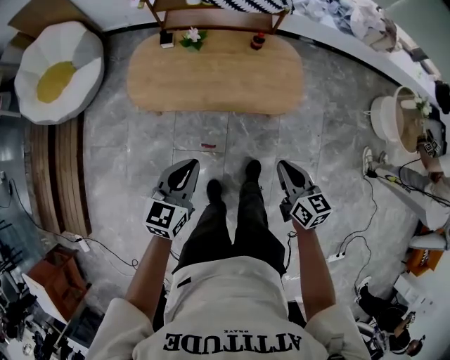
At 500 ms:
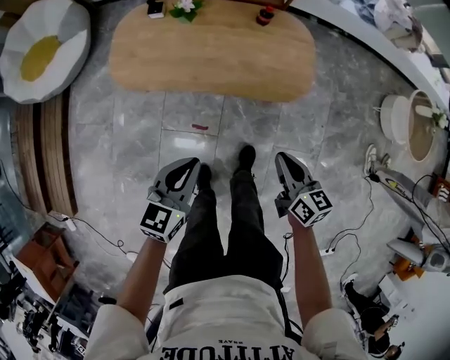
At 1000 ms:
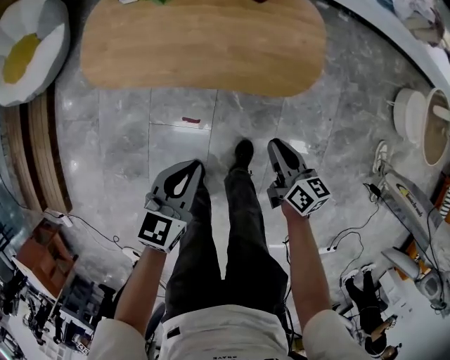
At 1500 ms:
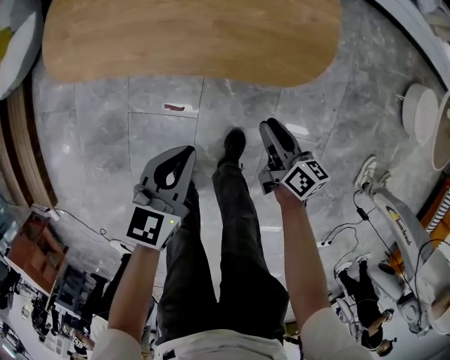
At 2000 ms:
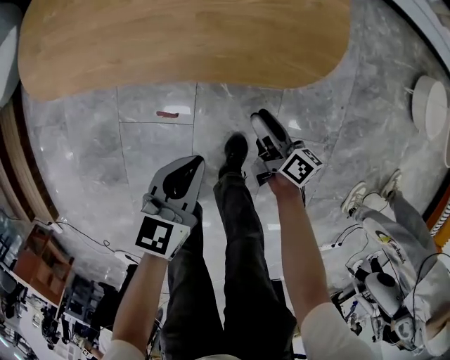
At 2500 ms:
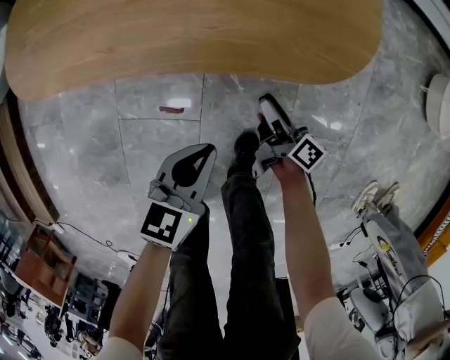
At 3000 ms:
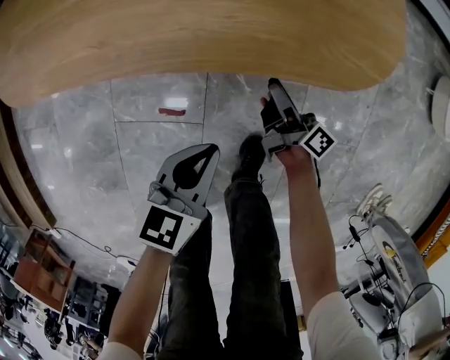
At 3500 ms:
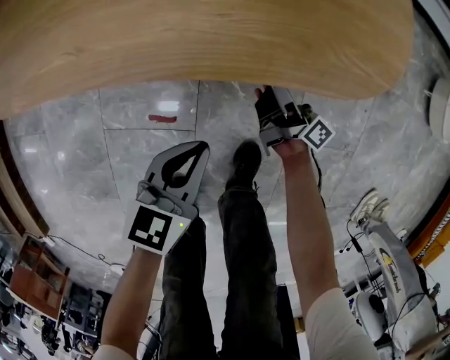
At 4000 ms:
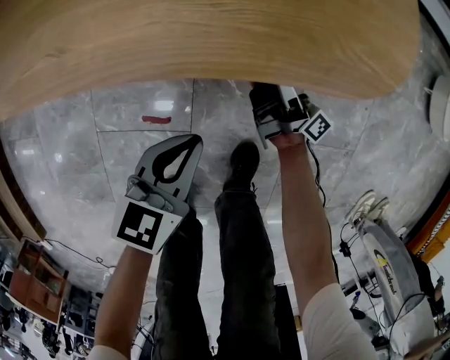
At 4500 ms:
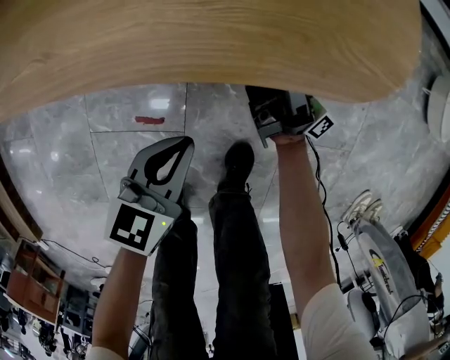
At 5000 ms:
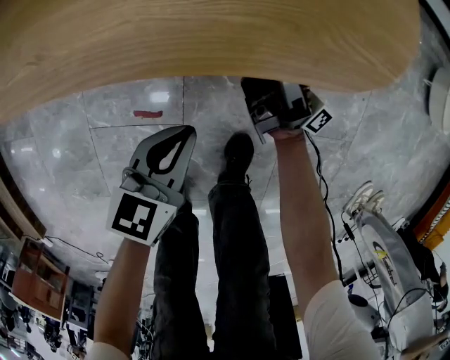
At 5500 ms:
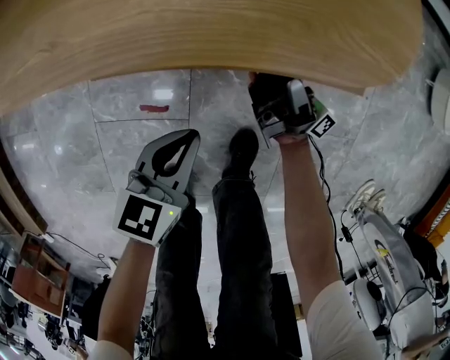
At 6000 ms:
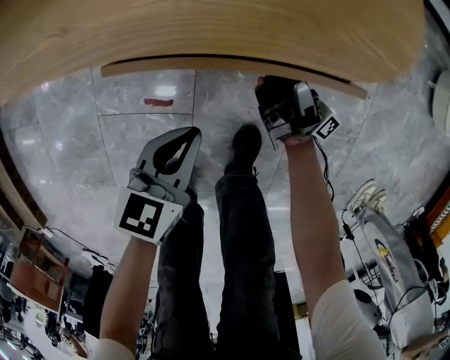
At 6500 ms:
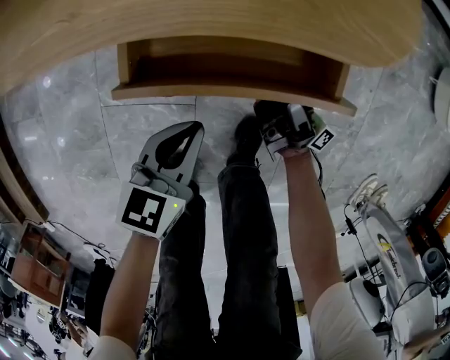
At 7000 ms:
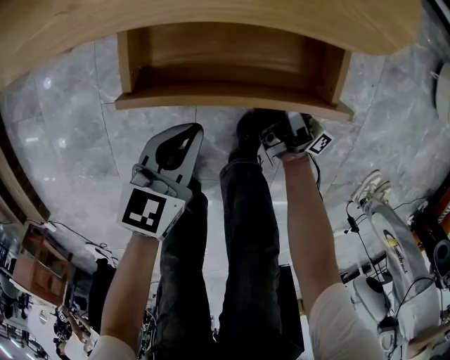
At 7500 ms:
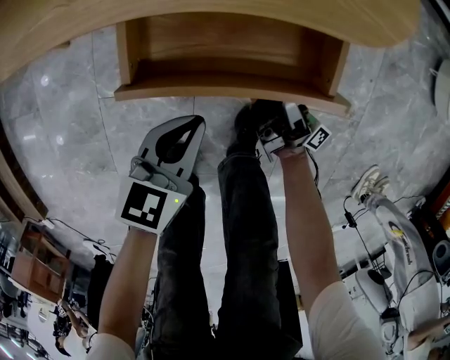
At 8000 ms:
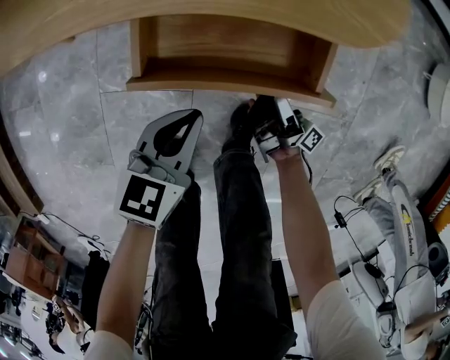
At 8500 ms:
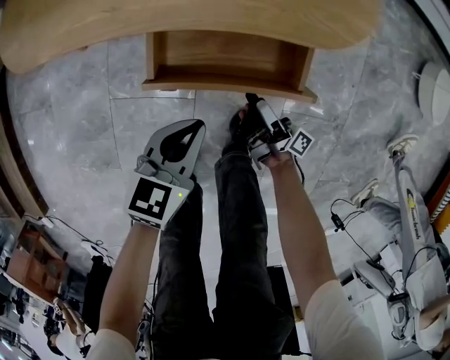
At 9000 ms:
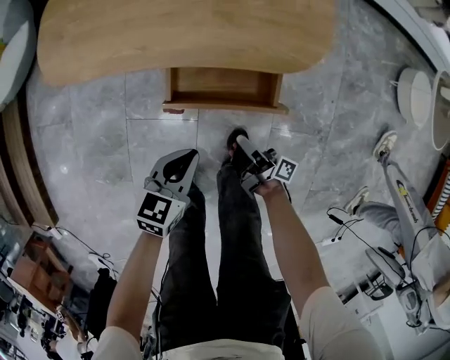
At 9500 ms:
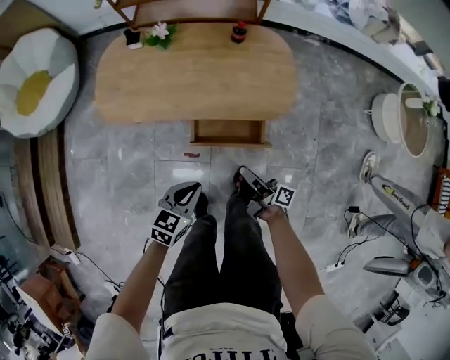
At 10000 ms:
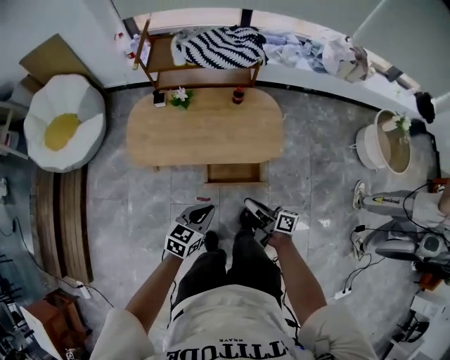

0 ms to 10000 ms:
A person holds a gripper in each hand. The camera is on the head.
0 ms to 2000 ms: The right gripper moves downward, about 50 cm, swivels approximately 40 degrees, and opens its fingers. The left gripper moves downward and to the right, about 40 cm.
2000 ms to 4000 ms: The right gripper is displaced downward and forward by approximately 15 cm, tips its fingers upward by approximately 40 degrees, and opens; the left gripper shifts about 20 cm downward.
4000 ms to 6000 ms: The right gripper moves upward, about 5 cm.
6000 ms to 8000 ms: The left gripper shifts by some 5 cm, while the right gripper heads backward, covering about 10 cm.
8000 ms to 10000 ms: The two grippers go approximately 50 cm upward. The right gripper turns by roughly 30 degrees, and closes.

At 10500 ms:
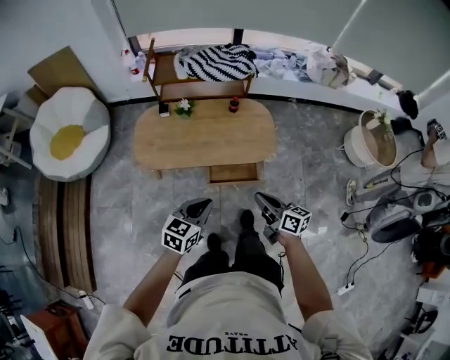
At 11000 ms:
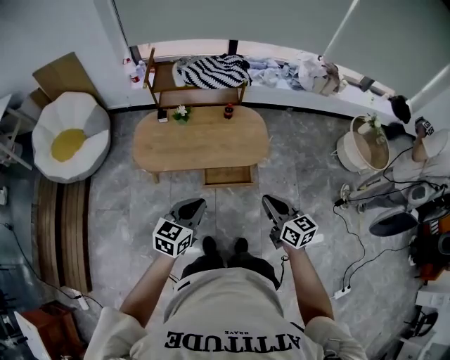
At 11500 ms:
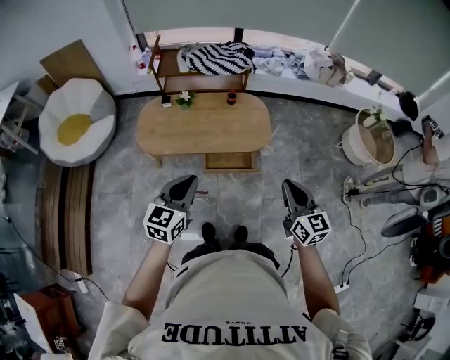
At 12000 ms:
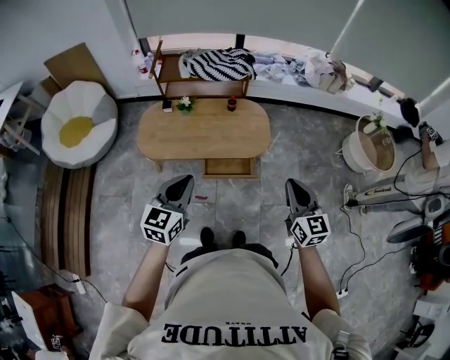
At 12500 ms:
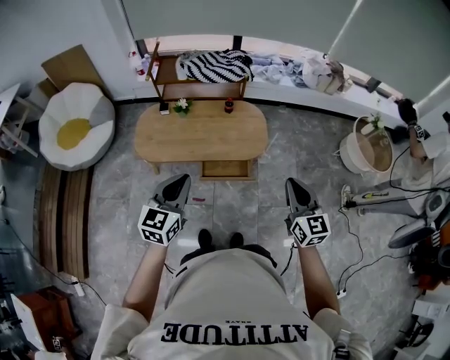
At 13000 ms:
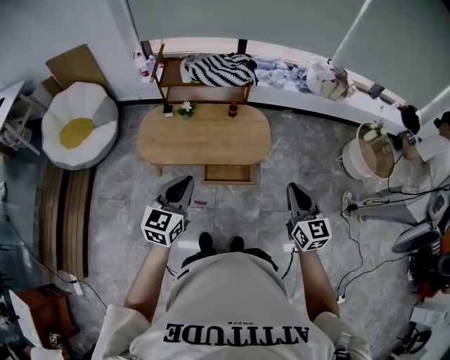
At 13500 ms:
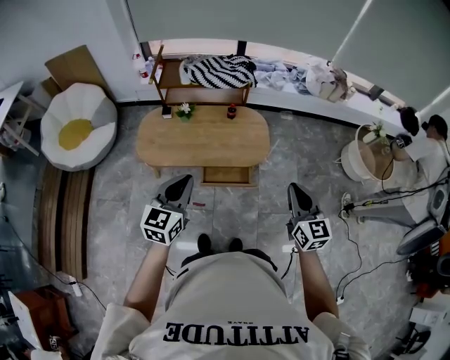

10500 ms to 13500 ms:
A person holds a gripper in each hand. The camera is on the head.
10500 ms to 12000 ms: The left gripper goes roughly 15 cm upward, and turns by roughly 20 degrees, while the right gripper moves upward and to the right, approximately 20 cm, and rotates roughly 40 degrees.
12000 ms to 13500 ms: The grippers make only small movements.

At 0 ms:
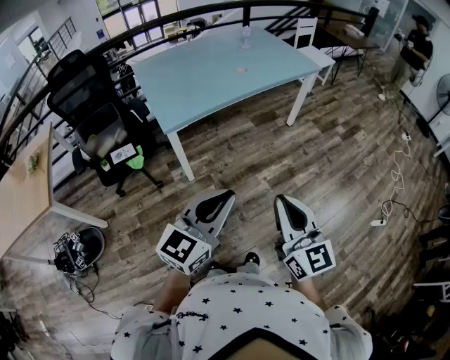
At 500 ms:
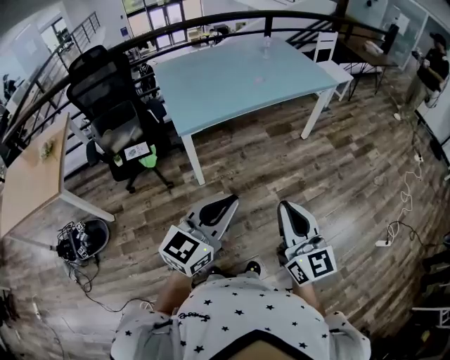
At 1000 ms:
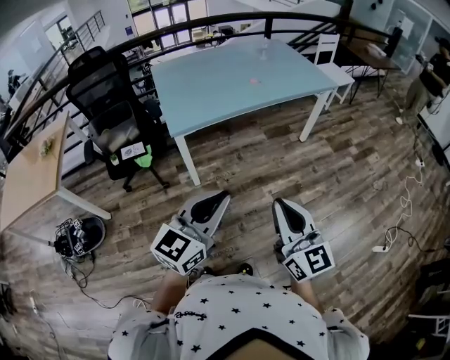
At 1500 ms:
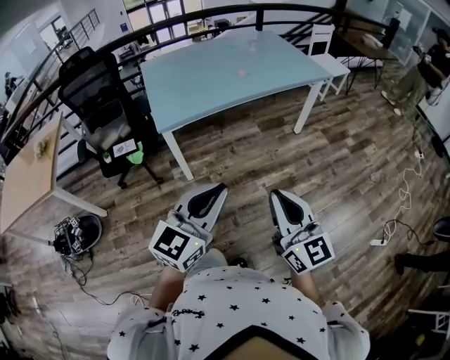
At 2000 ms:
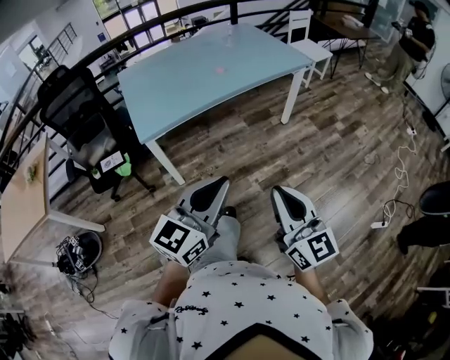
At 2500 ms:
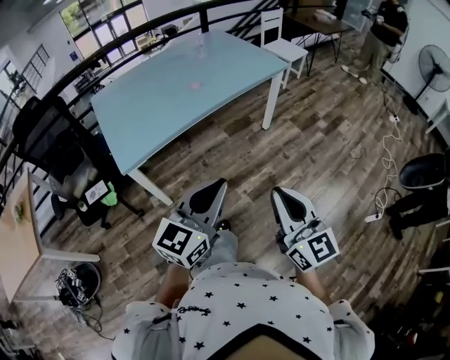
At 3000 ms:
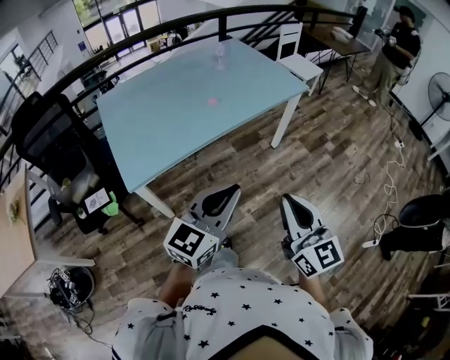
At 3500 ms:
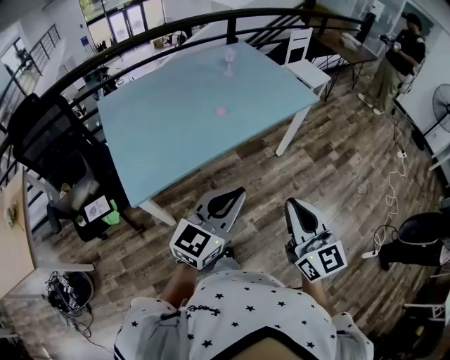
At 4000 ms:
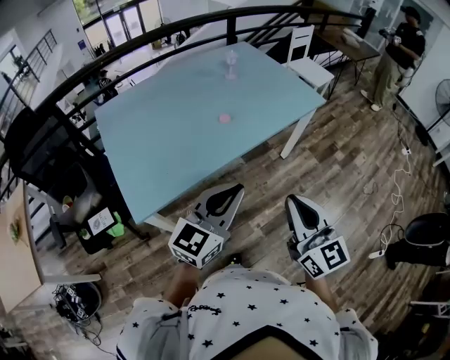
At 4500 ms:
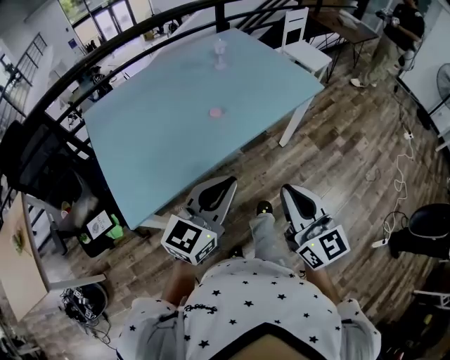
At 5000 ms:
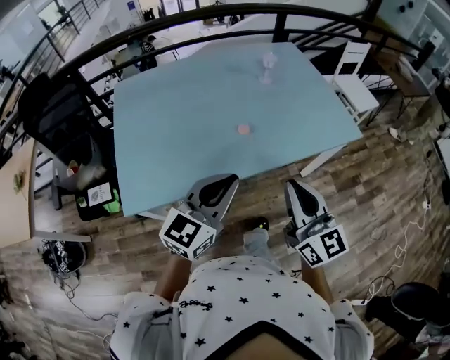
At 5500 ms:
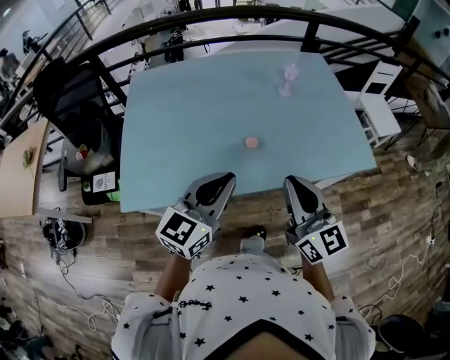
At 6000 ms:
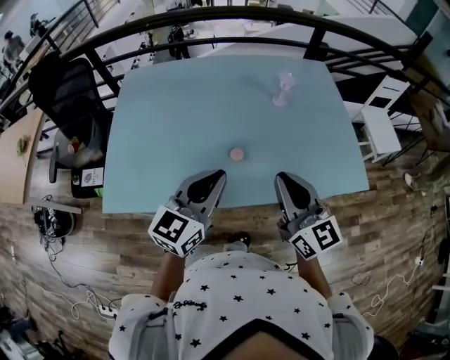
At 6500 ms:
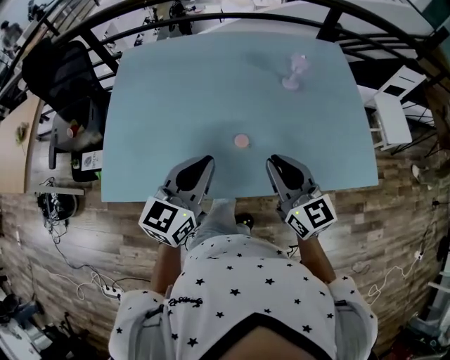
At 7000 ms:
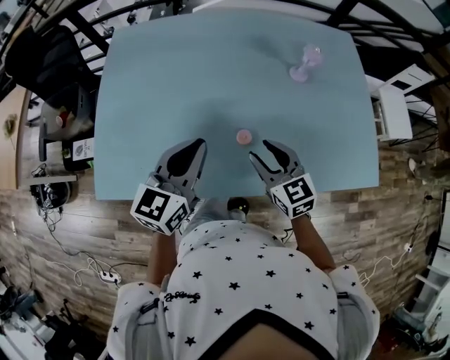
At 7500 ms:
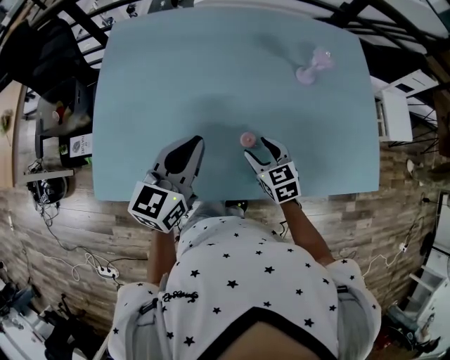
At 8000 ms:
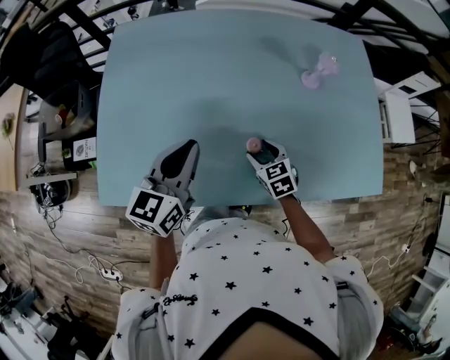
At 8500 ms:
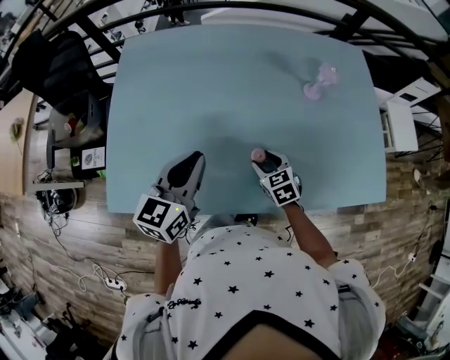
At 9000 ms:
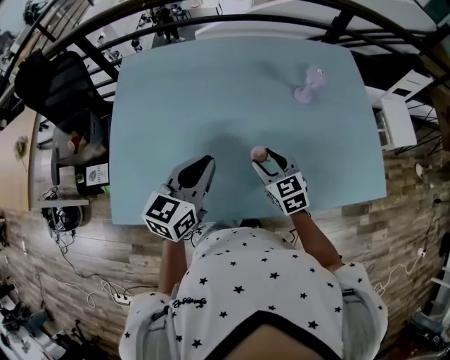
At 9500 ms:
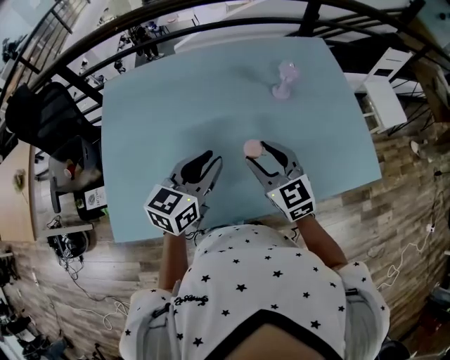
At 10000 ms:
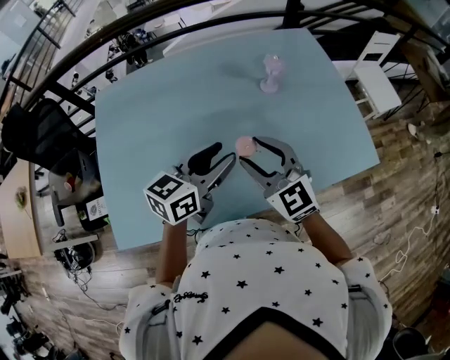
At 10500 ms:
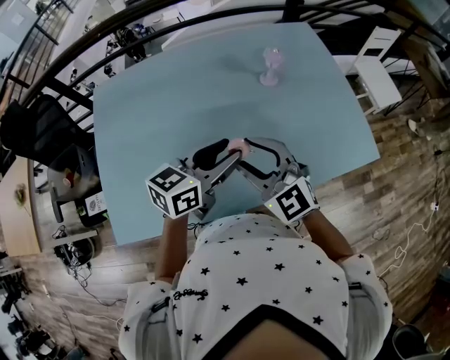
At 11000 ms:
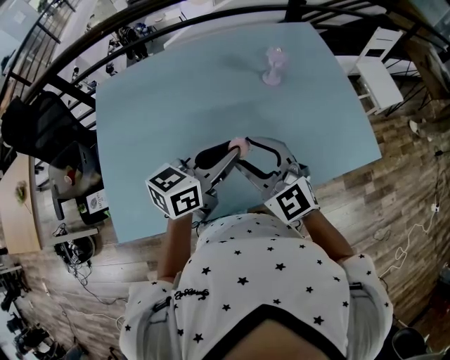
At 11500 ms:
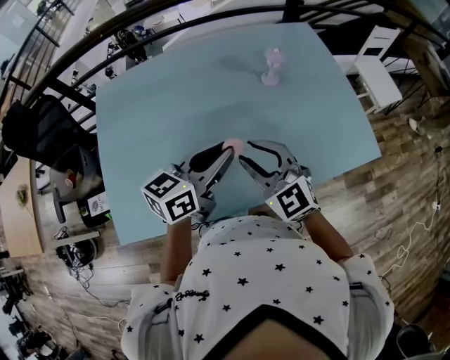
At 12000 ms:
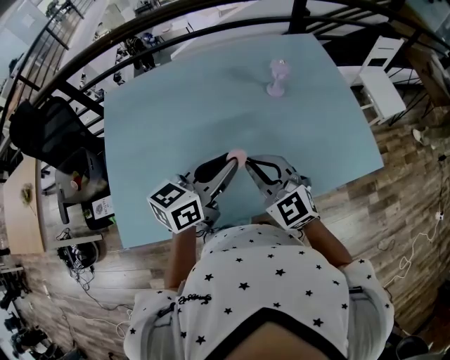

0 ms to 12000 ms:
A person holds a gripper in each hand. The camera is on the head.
0 ms to 2000 ms: Both grippers travel together to the right and forward, roughly 15 cm.
2000 ms to 4000 ms: Both grippers travel together forward, some 30 cm.
4000 ms to 6000 ms: The left gripper changes place by approximately 30 cm, and changes its angle by roughly 30 degrees. The right gripper changes place by some 35 cm, and swivels roughly 30 degrees.
6000 ms to 8000 ms: The left gripper heads forward, to the left and downward, covering approximately 20 cm. The right gripper travels downward and forward by some 35 cm, tips its fingers downward by roughly 50 degrees, and opens its fingers.
8000 ms to 10000 ms: The left gripper heads to the right, covering approximately 15 cm, swivels some 30 degrees, and opens its fingers, while the right gripper shifts some 25 cm upward, and tilts its fingers some 30 degrees upward.
10000 ms to 12000 ms: The right gripper closes up. Meanwhile the left gripper closes.

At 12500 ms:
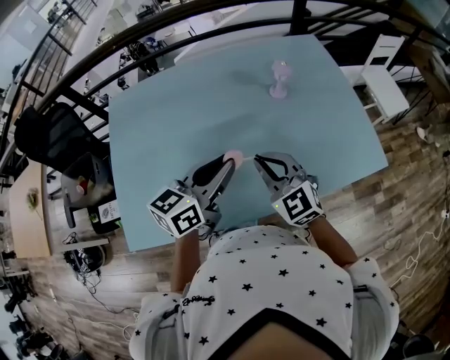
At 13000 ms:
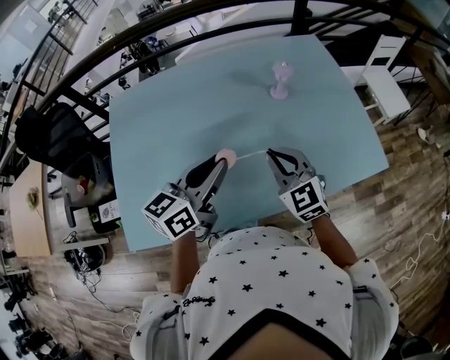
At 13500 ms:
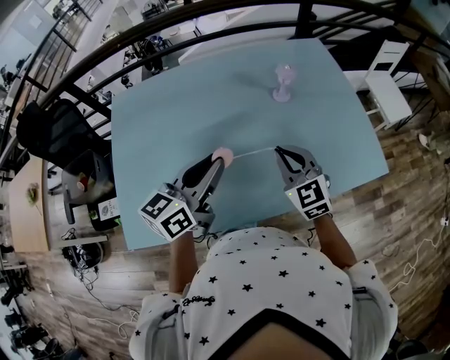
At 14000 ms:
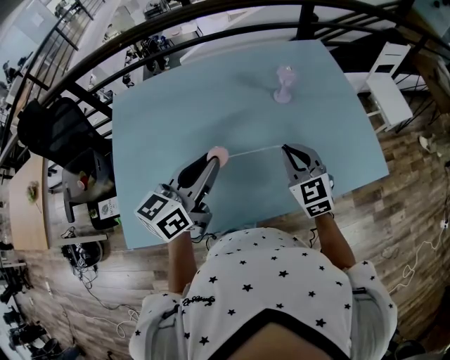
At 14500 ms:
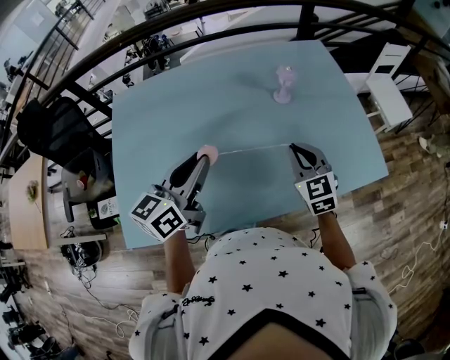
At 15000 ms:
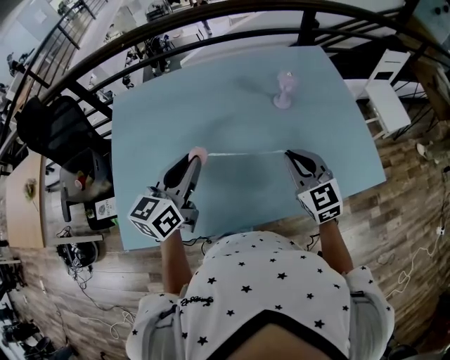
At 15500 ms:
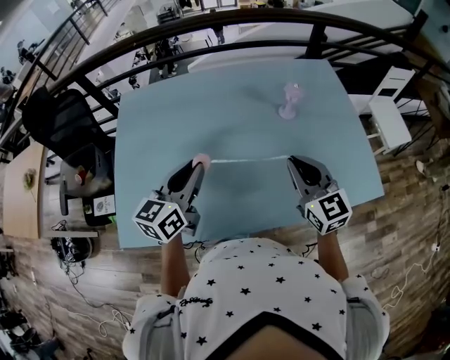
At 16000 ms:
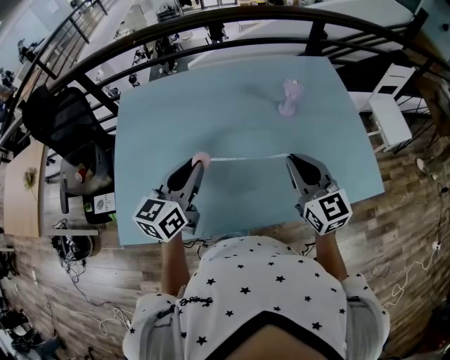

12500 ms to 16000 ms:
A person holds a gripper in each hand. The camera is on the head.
12500 ms to 14500 ms: The right gripper moves to the right and forward, roughly 10 cm, while the left gripper moves to the left, some 5 cm.
14500 ms to 16000 ms: The right gripper heads upward, covering approximately 10 cm, and swivels roughly 20 degrees.
